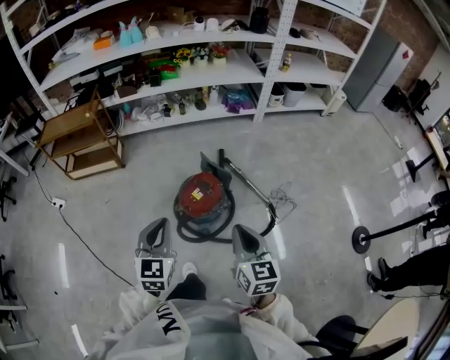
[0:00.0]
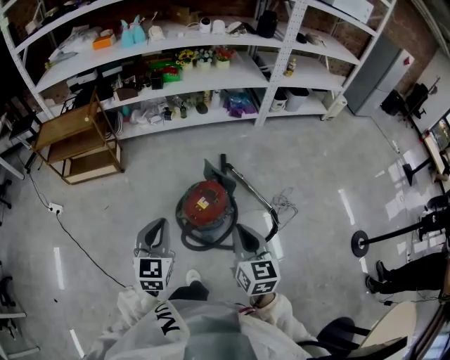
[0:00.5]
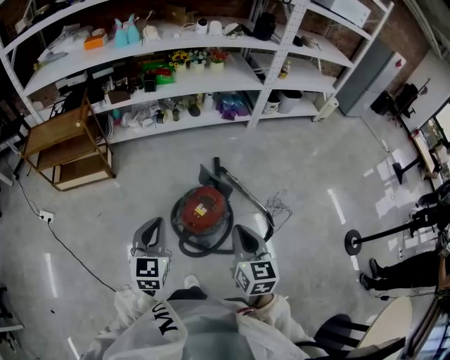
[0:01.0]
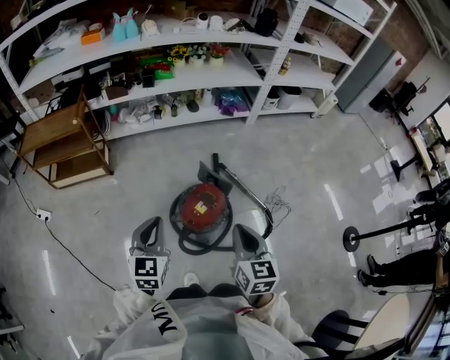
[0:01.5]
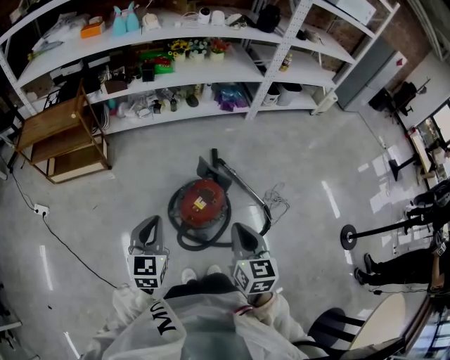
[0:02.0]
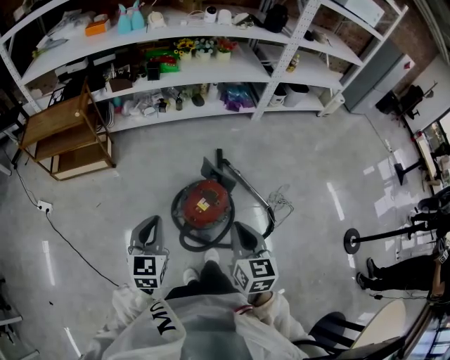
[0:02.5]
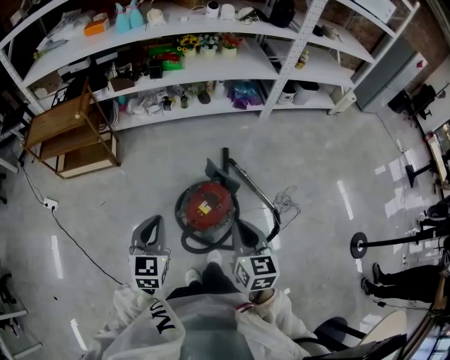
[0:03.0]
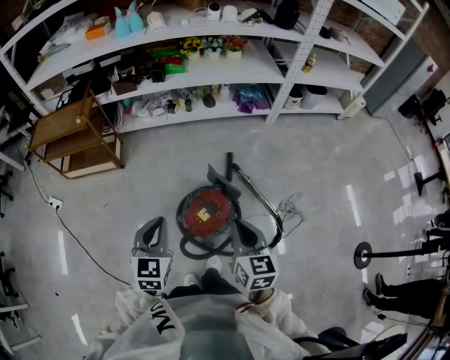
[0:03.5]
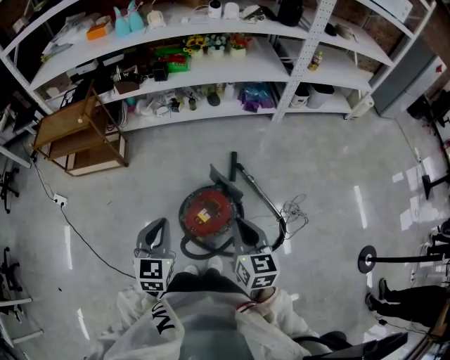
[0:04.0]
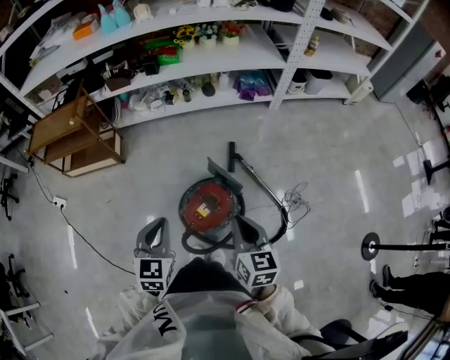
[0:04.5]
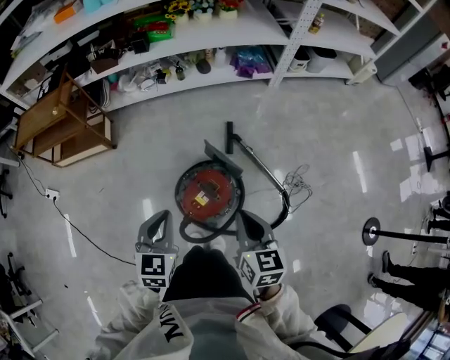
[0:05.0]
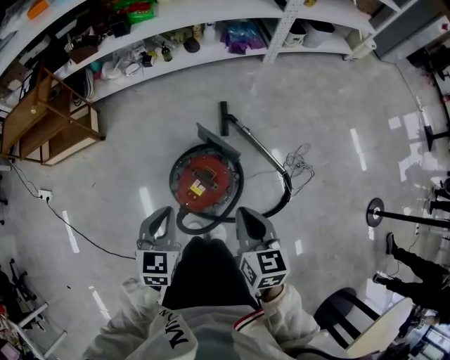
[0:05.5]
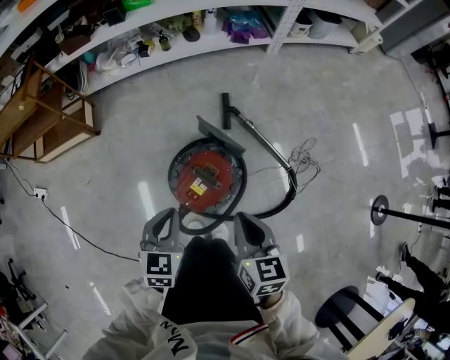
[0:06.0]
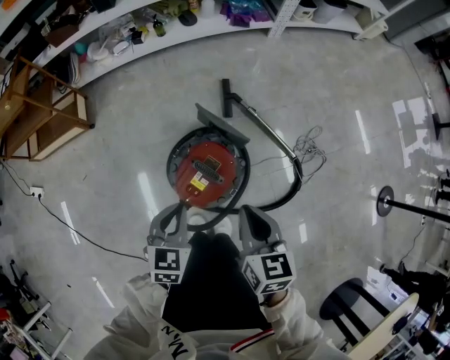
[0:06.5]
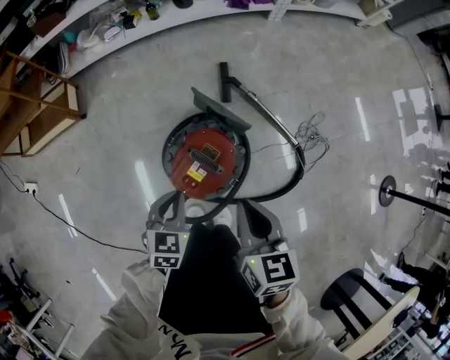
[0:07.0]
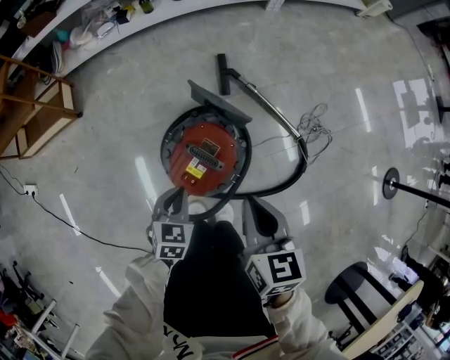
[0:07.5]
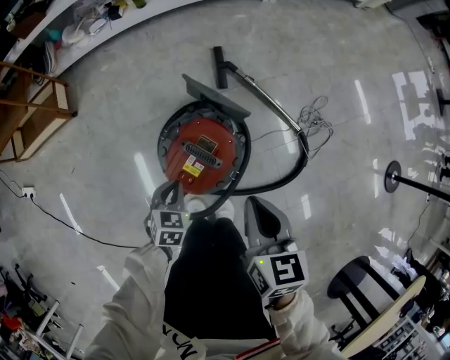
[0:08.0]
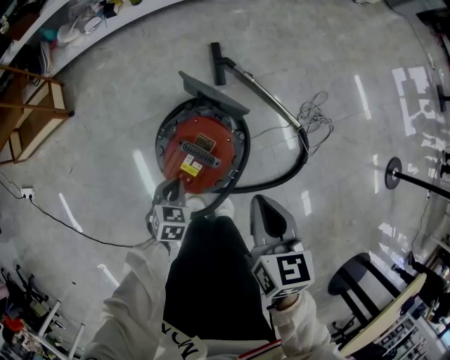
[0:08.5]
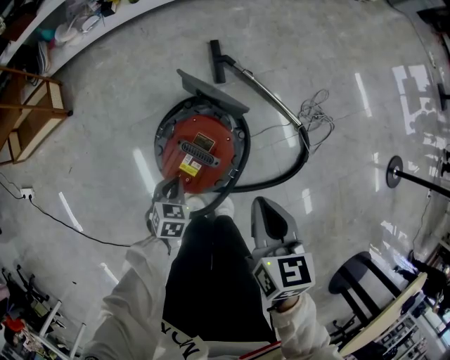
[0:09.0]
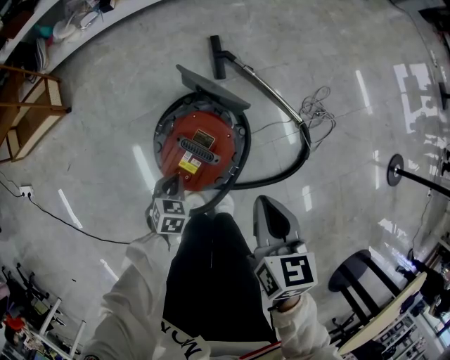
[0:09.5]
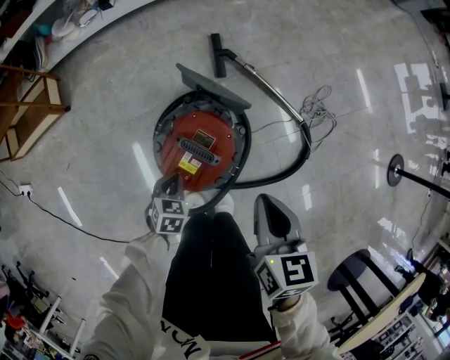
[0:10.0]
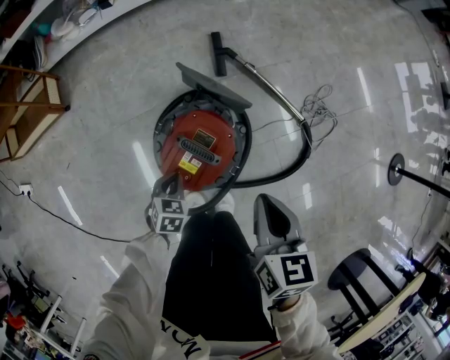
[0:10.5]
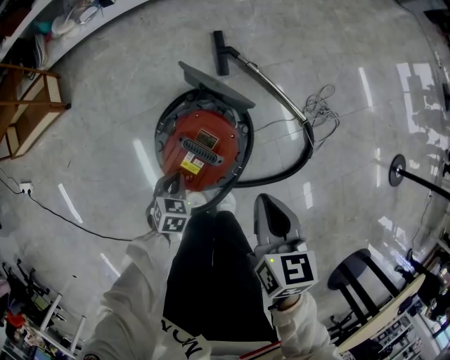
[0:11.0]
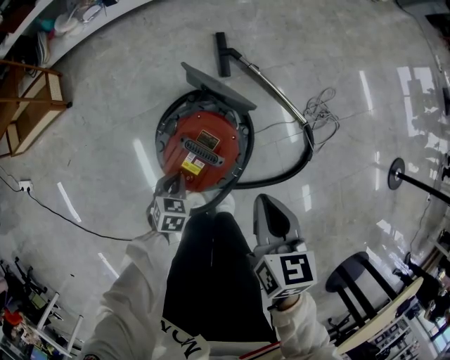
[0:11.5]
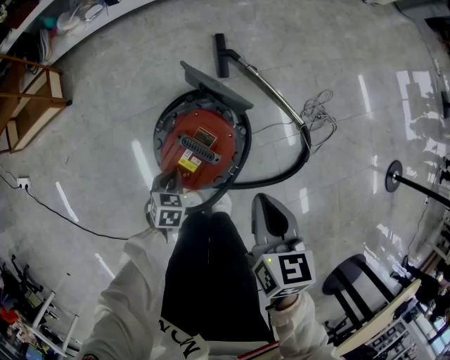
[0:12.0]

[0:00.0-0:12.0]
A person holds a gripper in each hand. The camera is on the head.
0.0 to 2.0 s: The grippers both shift forward and to the left by roughly 15 cm.
2.0 to 4.0 s: The left gripper goes some 10 cm to the right and forward. The right gripper shifts some 15 cm forward and to the right.
4.0 to 6.0 s: Both grippers move downward, approximately 15 cm.
6.0 to 8.0 s: The right gripper shifts about 5 cm downward; the left gripper goes approximately 25 cm downward.
8.0 to 10.0 s: The left gripper moves downward, some 5 cm.
10.0 to 12.0 s: The grippers move only a little.

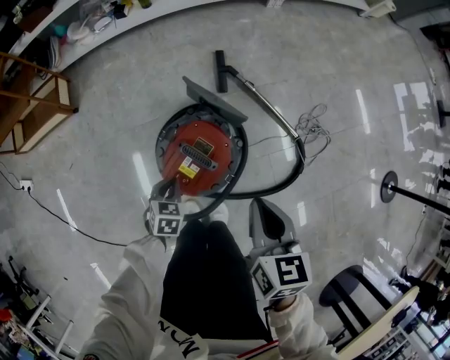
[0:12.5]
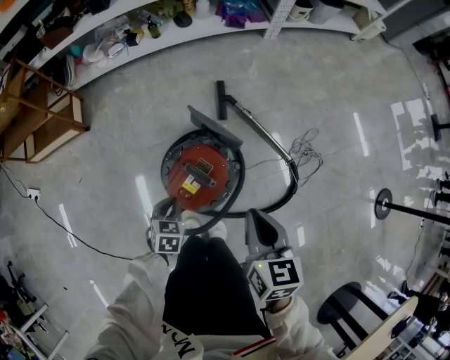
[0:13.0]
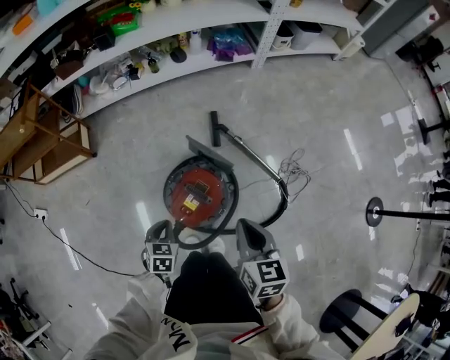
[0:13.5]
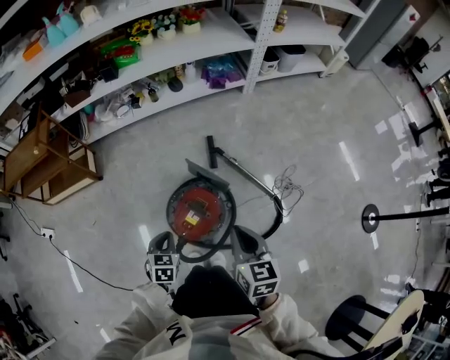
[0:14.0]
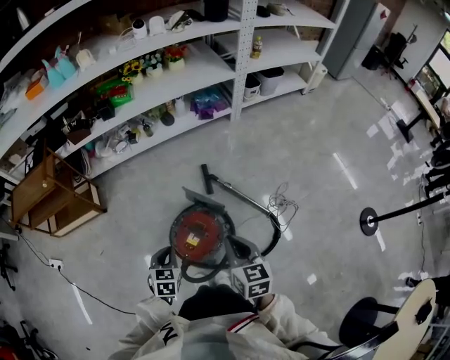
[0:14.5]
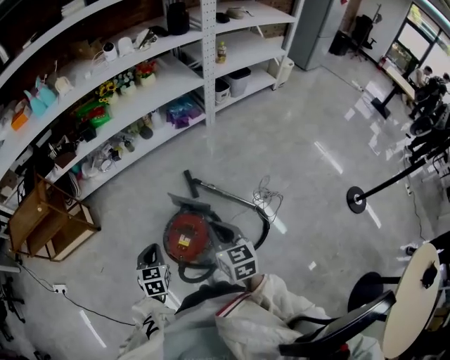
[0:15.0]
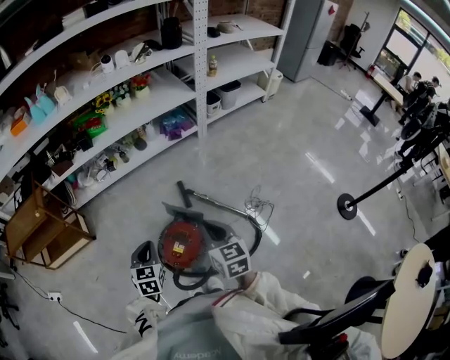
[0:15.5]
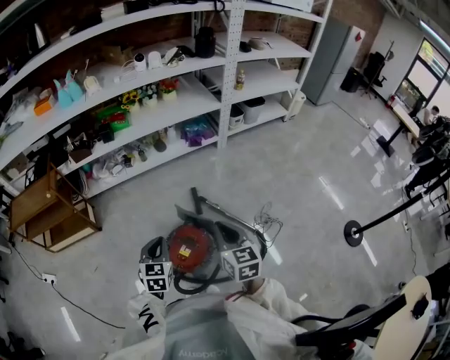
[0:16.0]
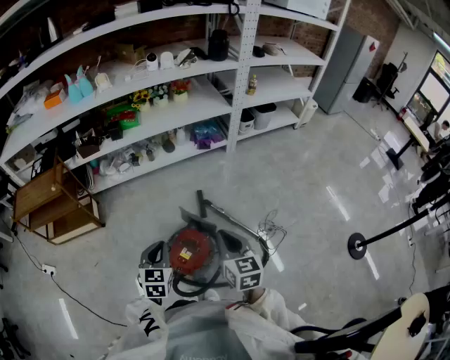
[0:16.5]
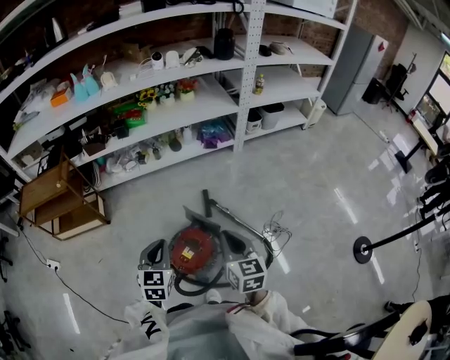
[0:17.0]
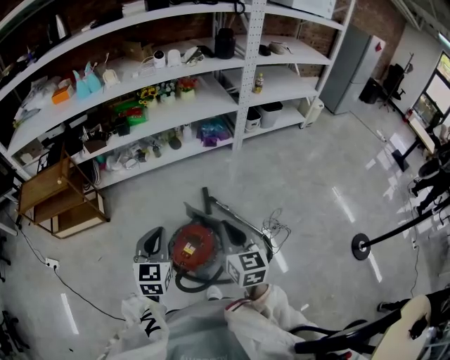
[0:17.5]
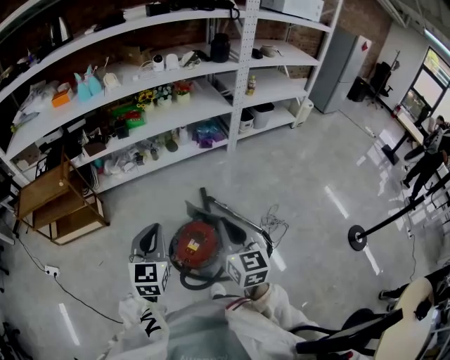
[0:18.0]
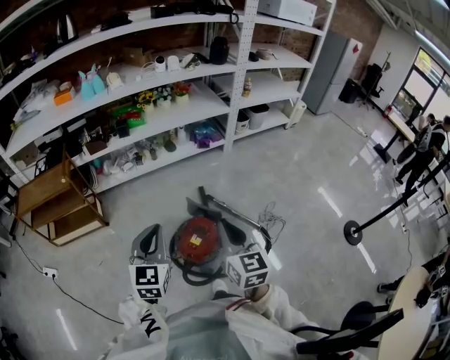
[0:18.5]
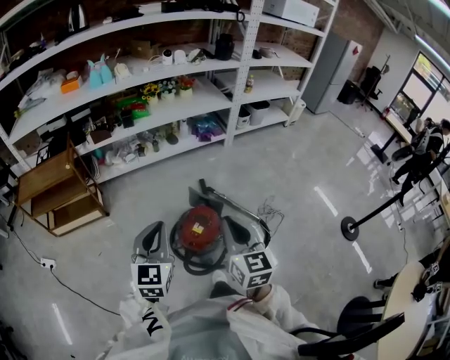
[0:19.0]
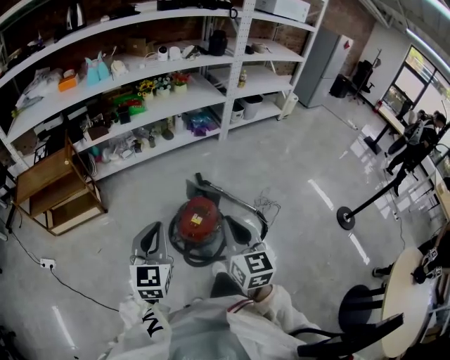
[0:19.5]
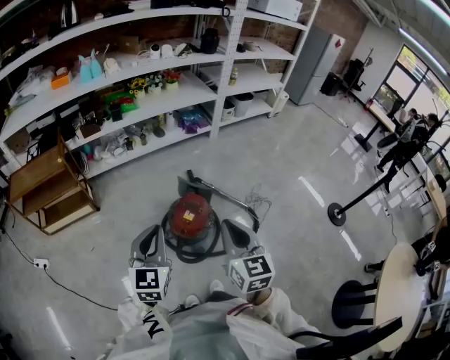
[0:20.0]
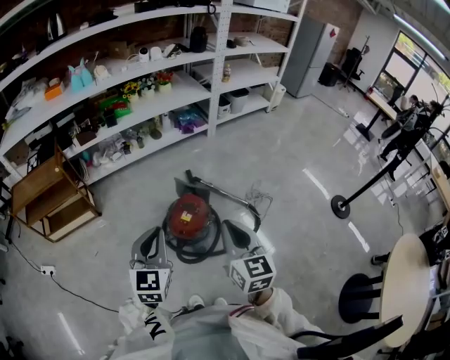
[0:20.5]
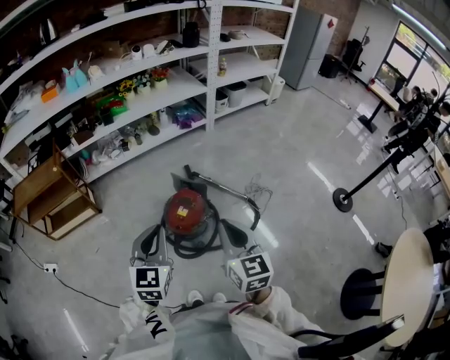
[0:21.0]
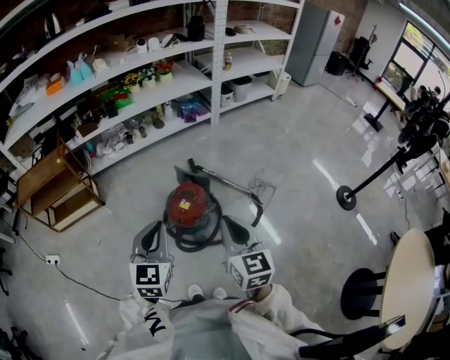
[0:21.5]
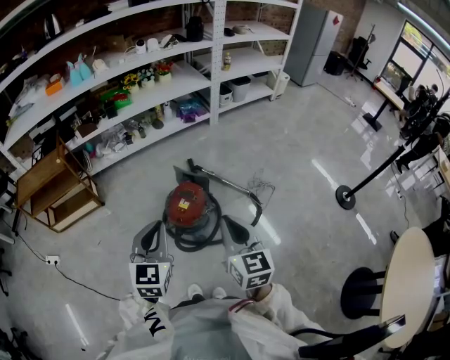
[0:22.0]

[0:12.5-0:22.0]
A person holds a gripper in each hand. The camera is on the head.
12.5 to 14.5 s: The left gripper heads upward, covering about 25 cm; the right gripper heads upward, covering some 15 cm.
14.5 to 16.5 s: The left gripper heads upward, covering about 15 cm. Meanwhile the right gripper goes approximately 10 cm upward.
16.5 to 18.0 s: The left gripper is displaced upward by about 15 cm. The right gripper travels upward by about 10 cm.
18.0 to 20.0 s: The two grippers go some 15 cm backward.
20.0 to 22.0 s: The two grippers go about 5 cm to the right.

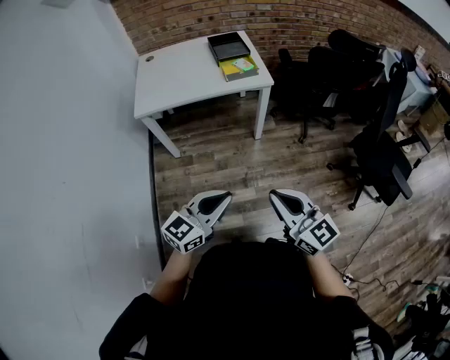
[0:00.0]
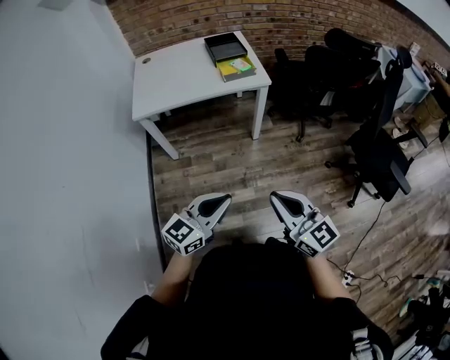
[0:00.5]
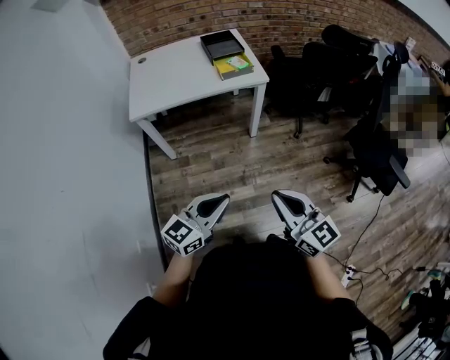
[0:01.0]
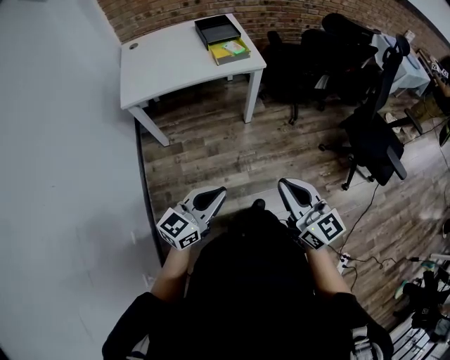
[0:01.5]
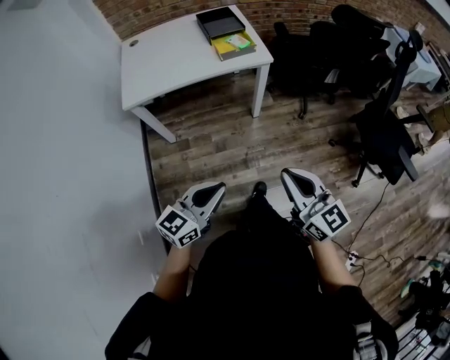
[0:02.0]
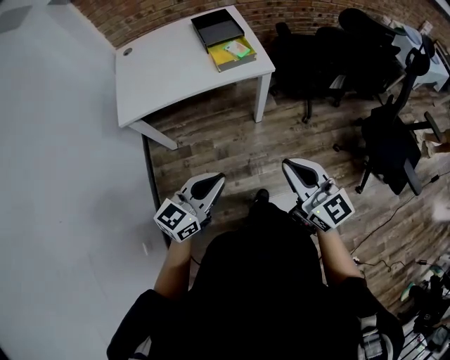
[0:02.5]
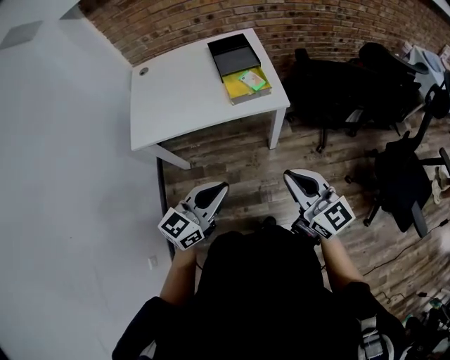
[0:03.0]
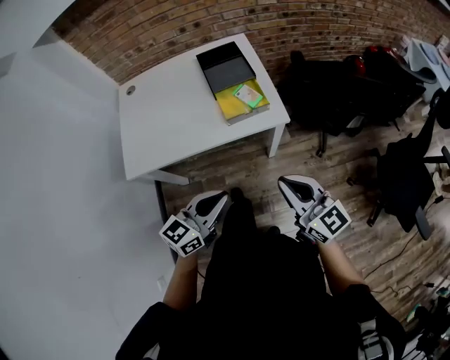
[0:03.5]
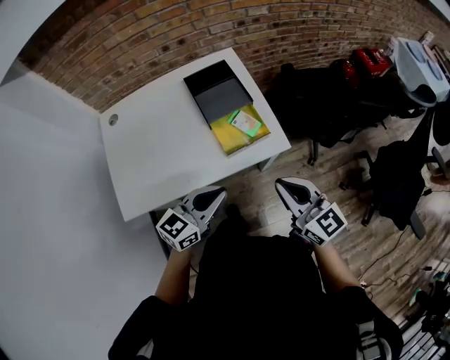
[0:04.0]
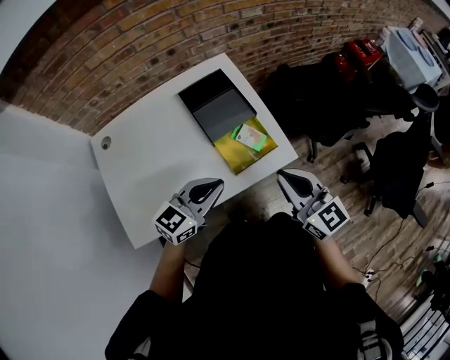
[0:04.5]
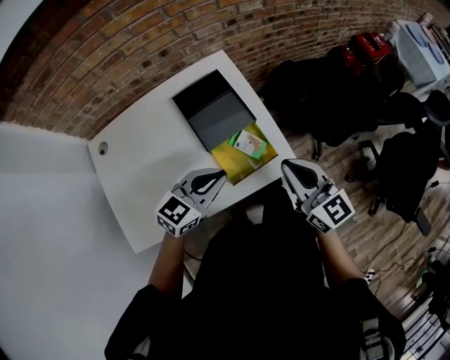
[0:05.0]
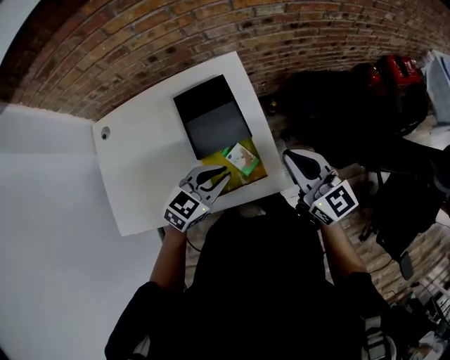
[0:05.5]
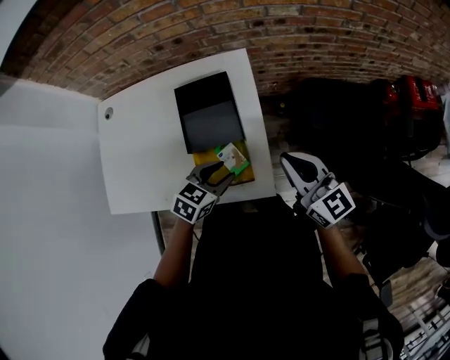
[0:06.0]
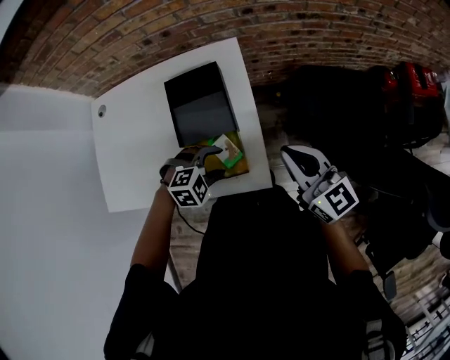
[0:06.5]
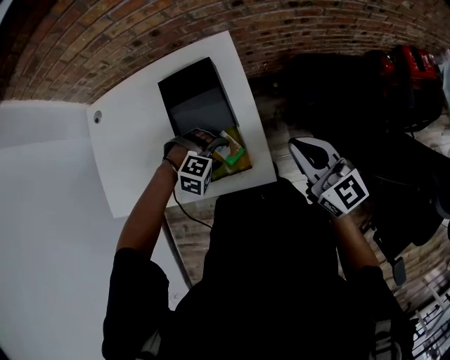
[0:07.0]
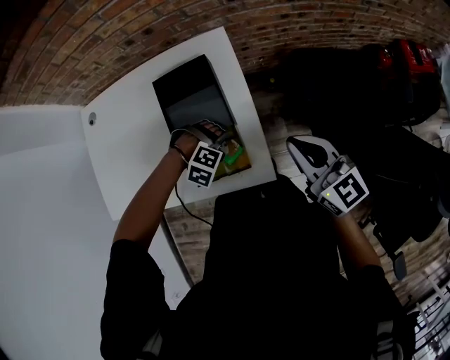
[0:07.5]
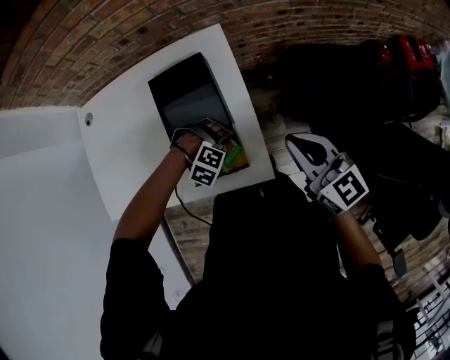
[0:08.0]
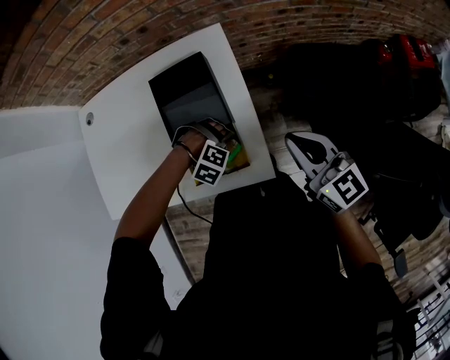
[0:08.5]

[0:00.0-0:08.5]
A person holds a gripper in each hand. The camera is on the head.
0.0 to 2.0 s: The right gripper heads forward, covering some 5 cm. The left gripper shifts by some 10 cm.
2.0 to 4.0 s: Both grippers are carried forward, some 50 cm.
4.0 to 6.5 s: The left gripper goes about 30 cm forward and downward, points its fingers about 50 degrees further downward, and opens up. The right gripper heads forward, covering about 30 cm.
6.5 to 8.5 s: The left gripper travels downward by about 10 cm, and rotates some 50 degrees.
